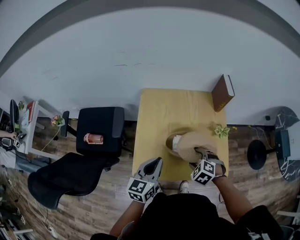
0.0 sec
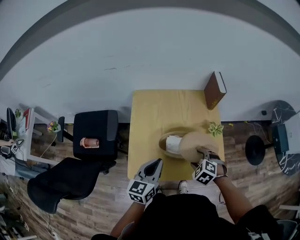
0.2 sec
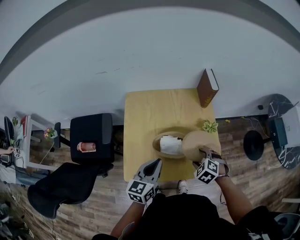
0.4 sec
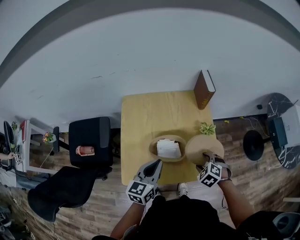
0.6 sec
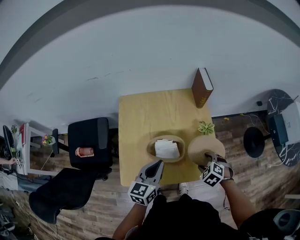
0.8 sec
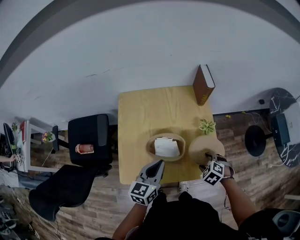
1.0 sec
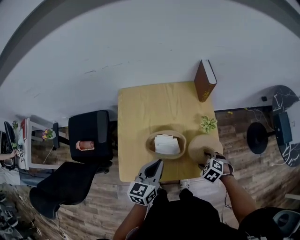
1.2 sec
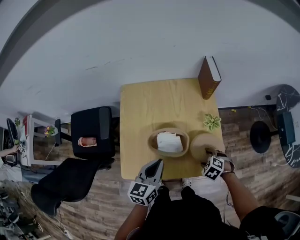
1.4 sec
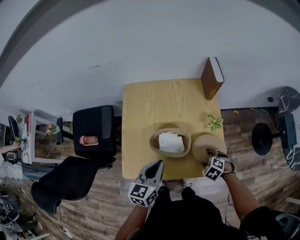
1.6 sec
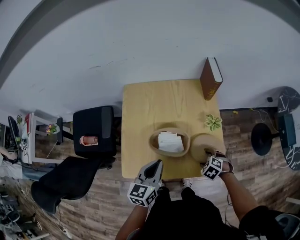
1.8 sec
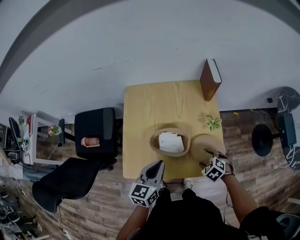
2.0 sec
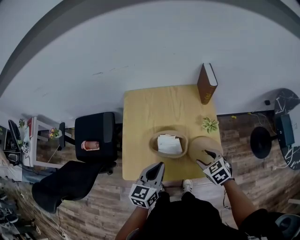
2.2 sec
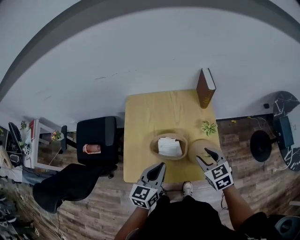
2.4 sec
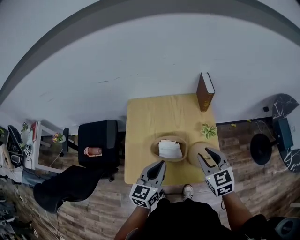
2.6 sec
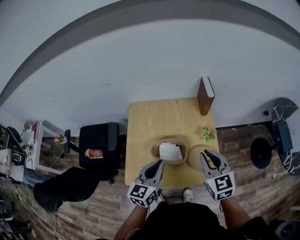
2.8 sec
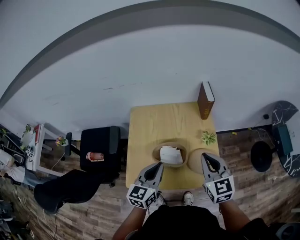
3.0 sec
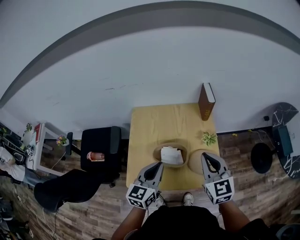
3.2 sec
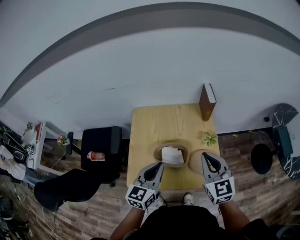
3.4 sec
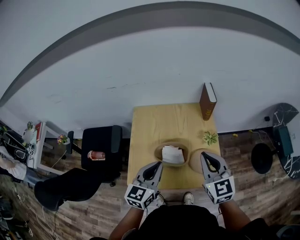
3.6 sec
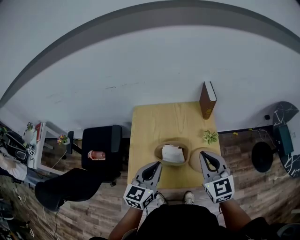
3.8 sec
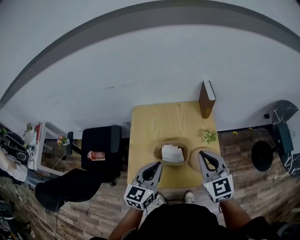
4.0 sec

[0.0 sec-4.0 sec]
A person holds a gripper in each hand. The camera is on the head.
0.0 sec to 1.4 sec: The left gripper moves roughly 10 cm, while the right gripper changes place by approximately 20 cm.
1.4 sec to 2.6 sec: The left gripper travels upward by approximately 5 cm. Meanwhile the right gripper shifts roughly 25 cm upward, points its fingers about 50 degrees further upward, and closes up.
2.6 sec to 4.0 sec: The left gripper ends up approximately 5 cm from where it was; the right gripper heads upward, covering some 10 cm, and closes its fingers.

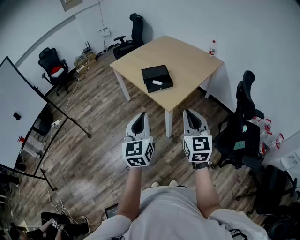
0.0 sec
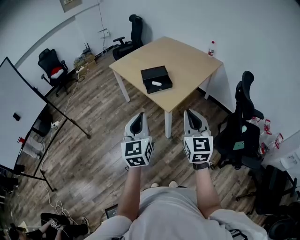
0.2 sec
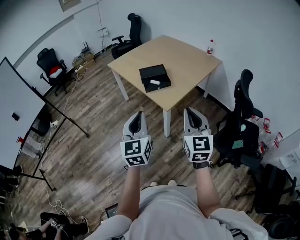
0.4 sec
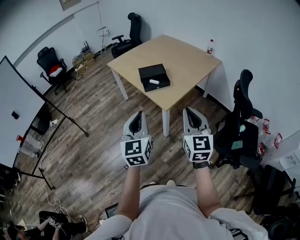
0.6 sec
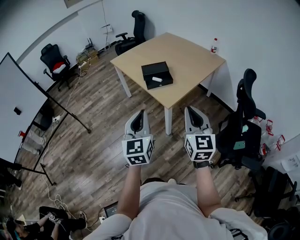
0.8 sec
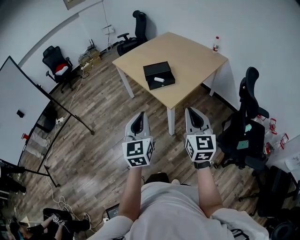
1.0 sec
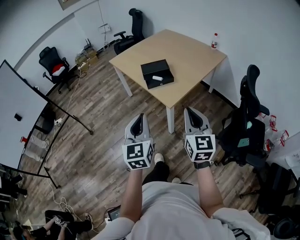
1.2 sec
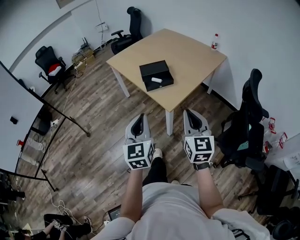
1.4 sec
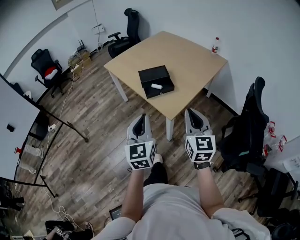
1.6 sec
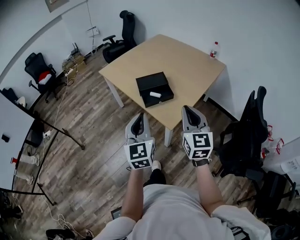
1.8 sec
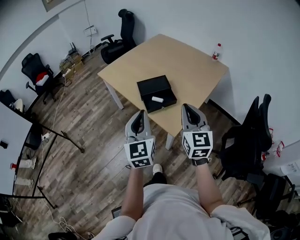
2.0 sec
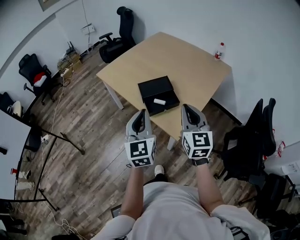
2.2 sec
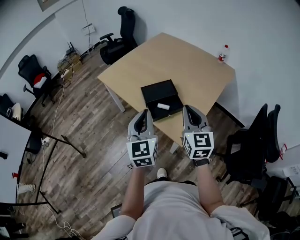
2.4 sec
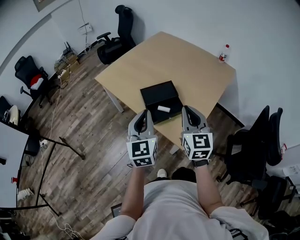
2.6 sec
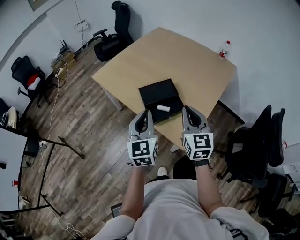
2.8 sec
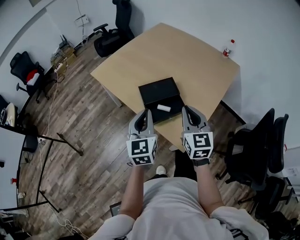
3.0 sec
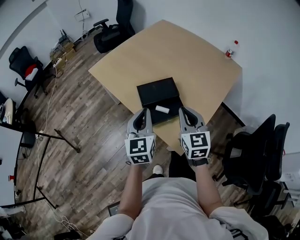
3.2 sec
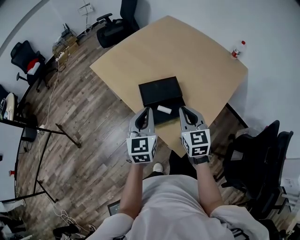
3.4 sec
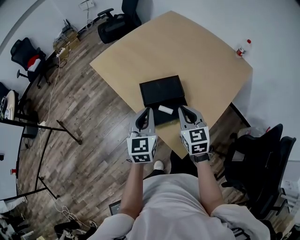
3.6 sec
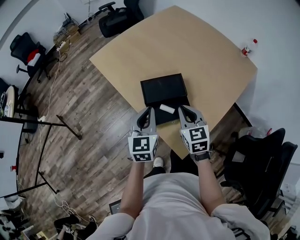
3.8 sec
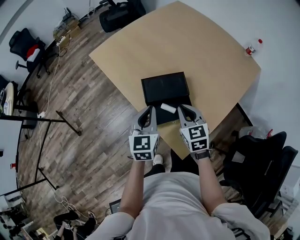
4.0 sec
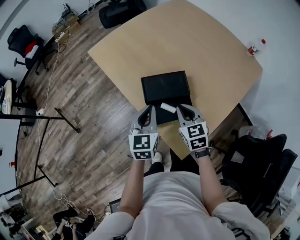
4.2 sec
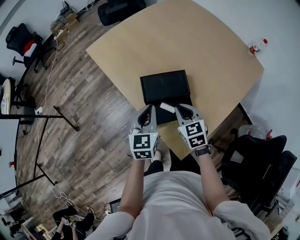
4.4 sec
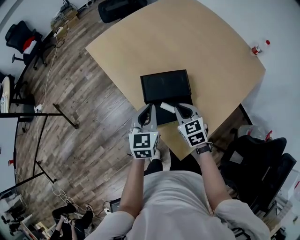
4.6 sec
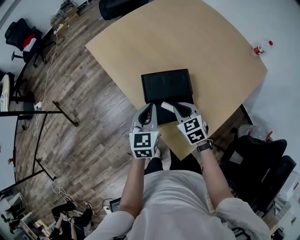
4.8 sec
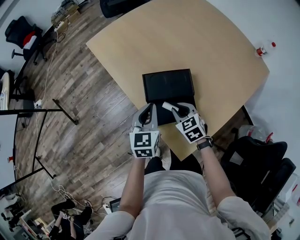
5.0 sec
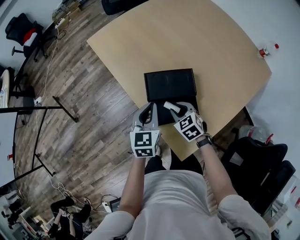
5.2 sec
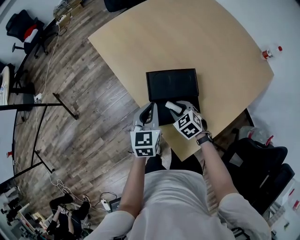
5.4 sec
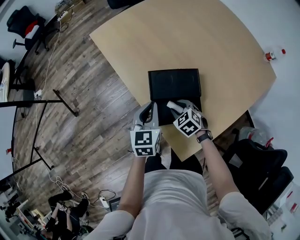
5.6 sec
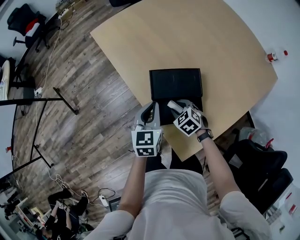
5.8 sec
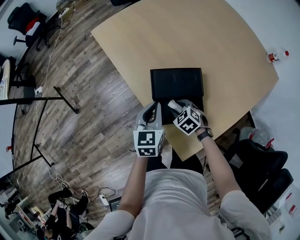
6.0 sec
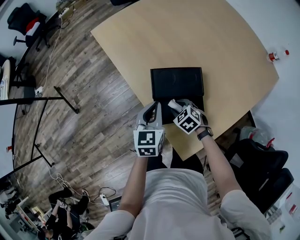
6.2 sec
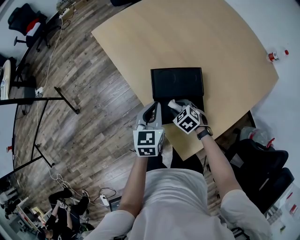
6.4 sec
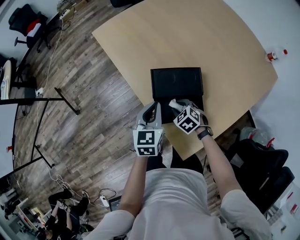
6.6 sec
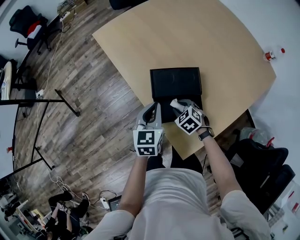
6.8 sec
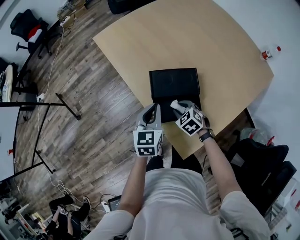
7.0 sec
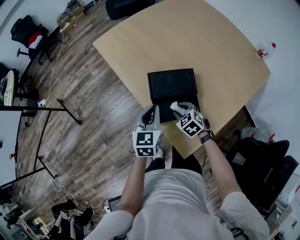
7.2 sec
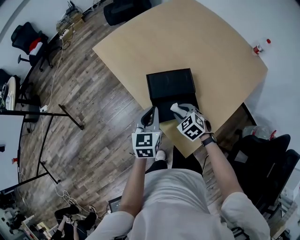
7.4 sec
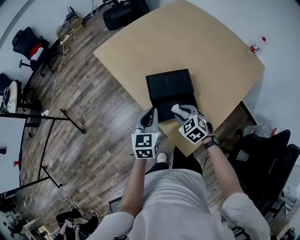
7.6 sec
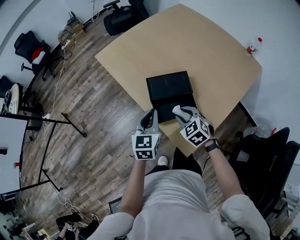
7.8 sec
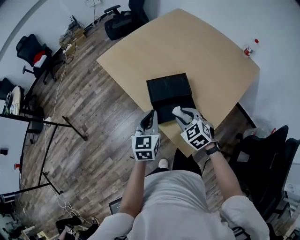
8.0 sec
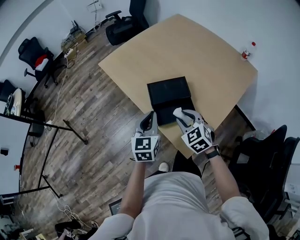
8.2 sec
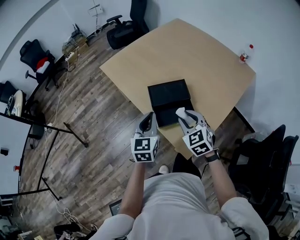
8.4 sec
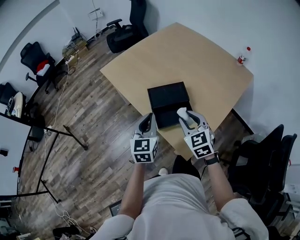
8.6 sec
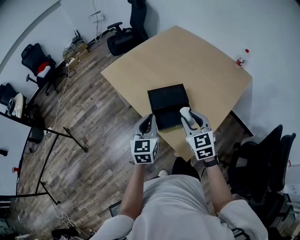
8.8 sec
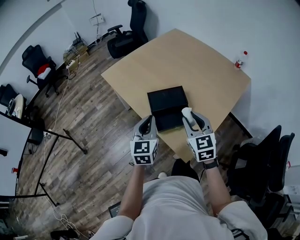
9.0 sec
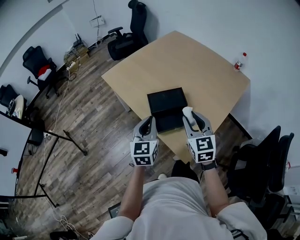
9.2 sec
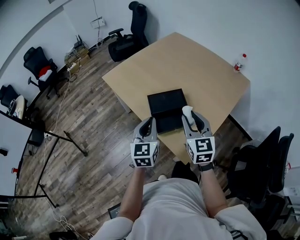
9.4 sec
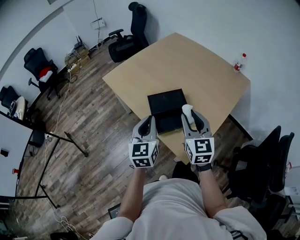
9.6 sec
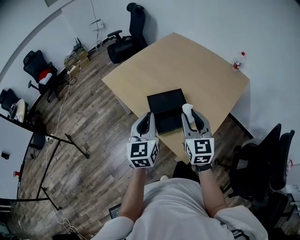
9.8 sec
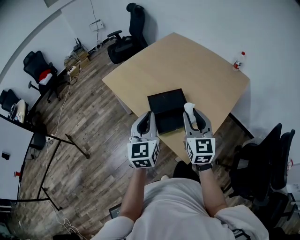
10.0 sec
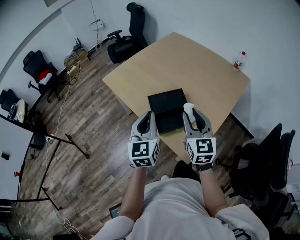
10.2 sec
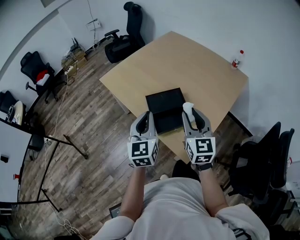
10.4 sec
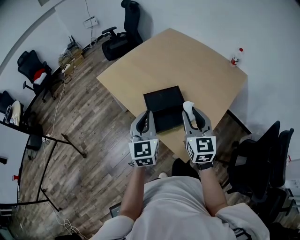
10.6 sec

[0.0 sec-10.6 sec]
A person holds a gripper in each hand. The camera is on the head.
0.0 sec to 1.6 sec: The two grippers go about 10 cm forward.
1.6 sec to 3.0 sec: Both grippers travel together forward, roughly 30 cm.
3.0 sec to 4.6 sec: Both grippers travel together downward and forward, some 20 cm. The right gripper changes its angle by about 40 degrees.
4.6 sec to 6.0 sec: The right gripper moves downward, approximately 15 cm, changes its angle by approximately 30 degrees, and opens; the left gripper ends up some 5 cm from where it was.
6.0 sec to 7.6 sec: The left gripper is displaced upward and backward by about 5 cm. The right gripper moves upward and backward, approximately 10 cm.
7.6 sec to 9.0 sec: The right gripper travels upward by some 20 cm, and turns by roughly 40 degrees; the left gripper goes roughly 10 cm upward.
9.0 sec to 10.6 sec: The left gripper shifts by about 5 cm.

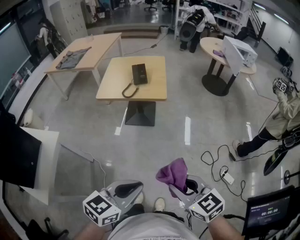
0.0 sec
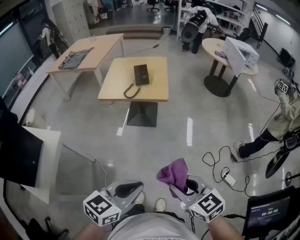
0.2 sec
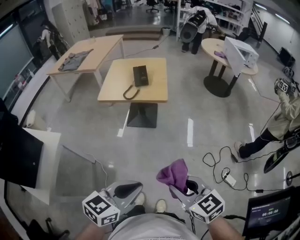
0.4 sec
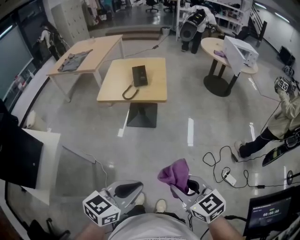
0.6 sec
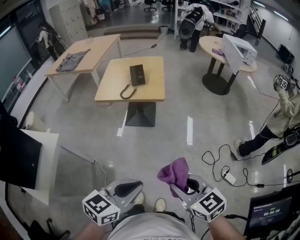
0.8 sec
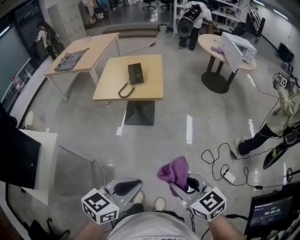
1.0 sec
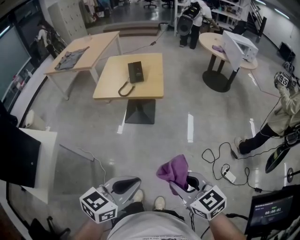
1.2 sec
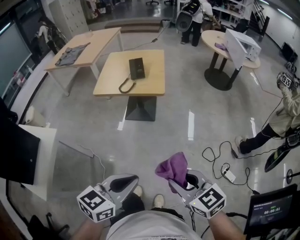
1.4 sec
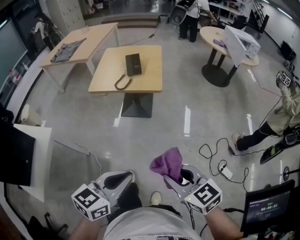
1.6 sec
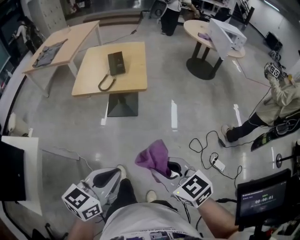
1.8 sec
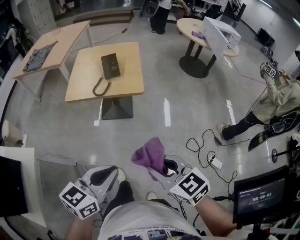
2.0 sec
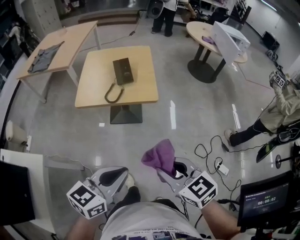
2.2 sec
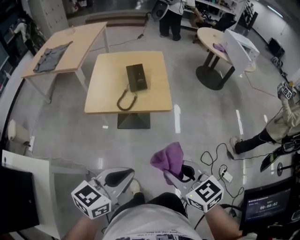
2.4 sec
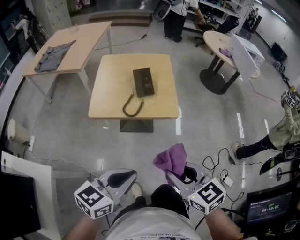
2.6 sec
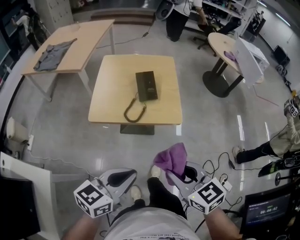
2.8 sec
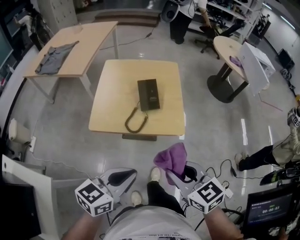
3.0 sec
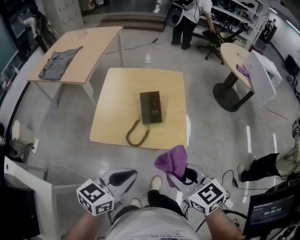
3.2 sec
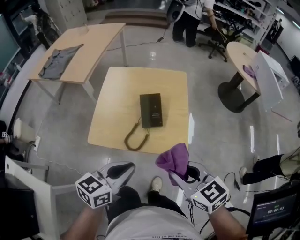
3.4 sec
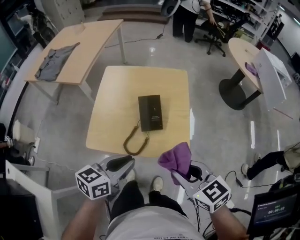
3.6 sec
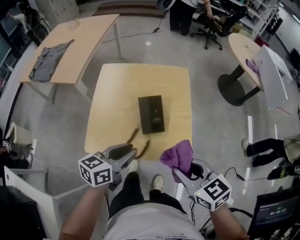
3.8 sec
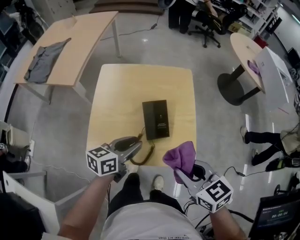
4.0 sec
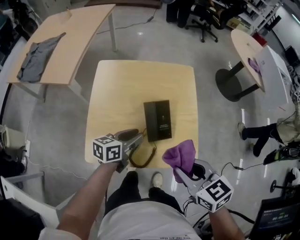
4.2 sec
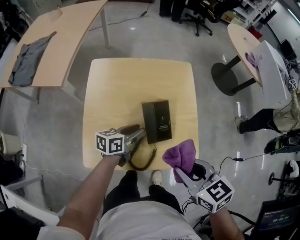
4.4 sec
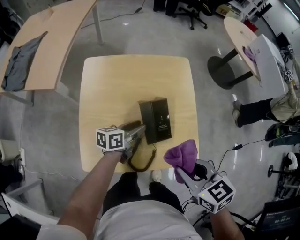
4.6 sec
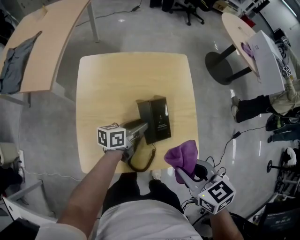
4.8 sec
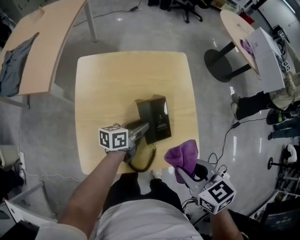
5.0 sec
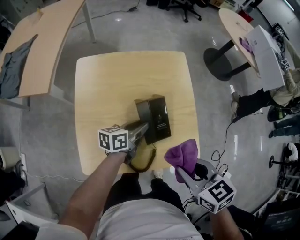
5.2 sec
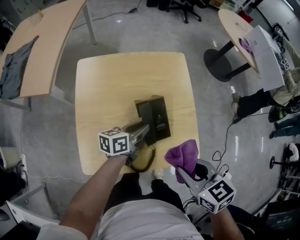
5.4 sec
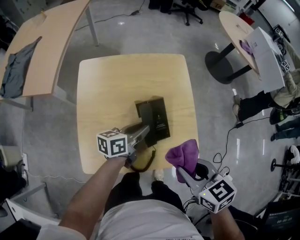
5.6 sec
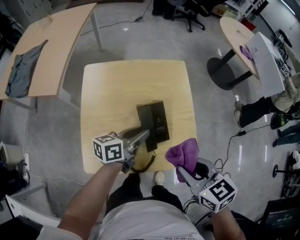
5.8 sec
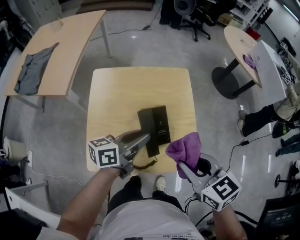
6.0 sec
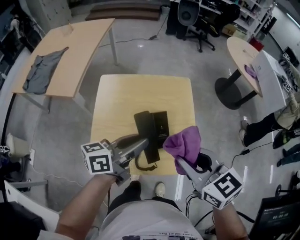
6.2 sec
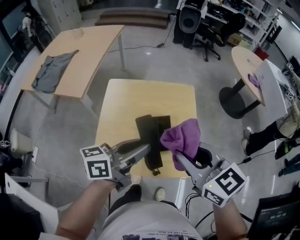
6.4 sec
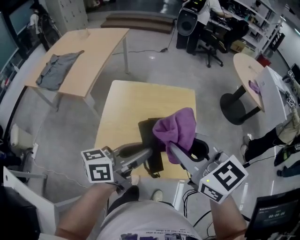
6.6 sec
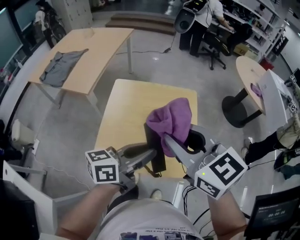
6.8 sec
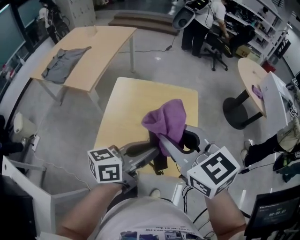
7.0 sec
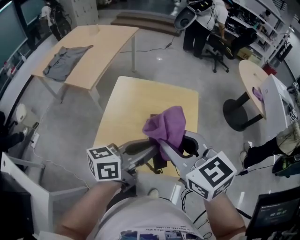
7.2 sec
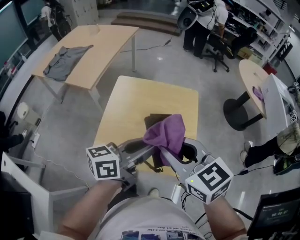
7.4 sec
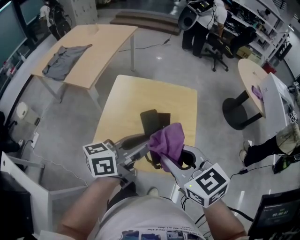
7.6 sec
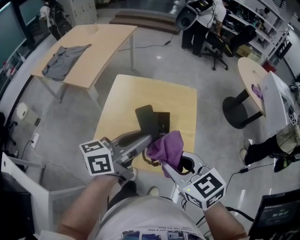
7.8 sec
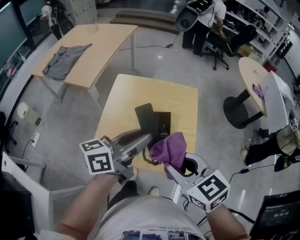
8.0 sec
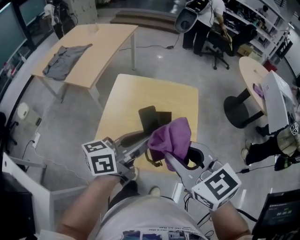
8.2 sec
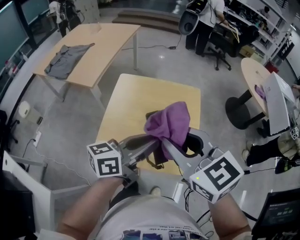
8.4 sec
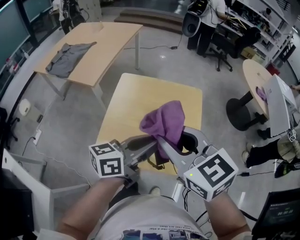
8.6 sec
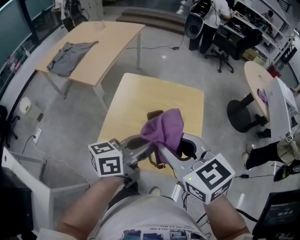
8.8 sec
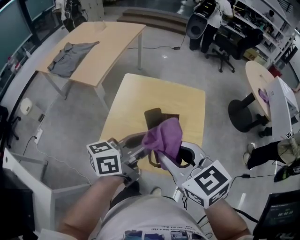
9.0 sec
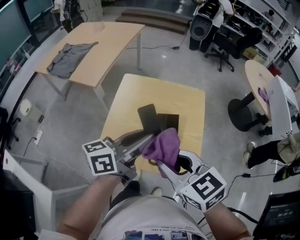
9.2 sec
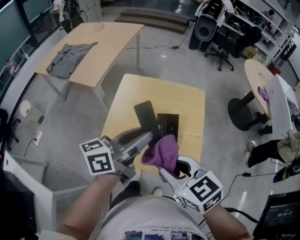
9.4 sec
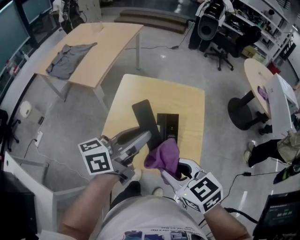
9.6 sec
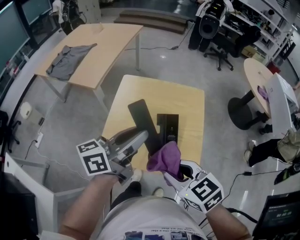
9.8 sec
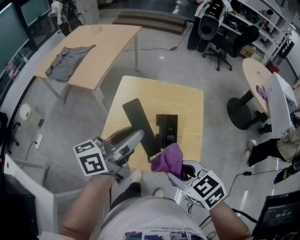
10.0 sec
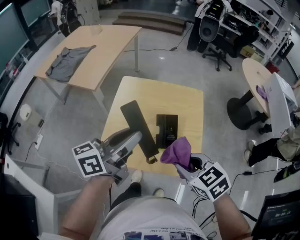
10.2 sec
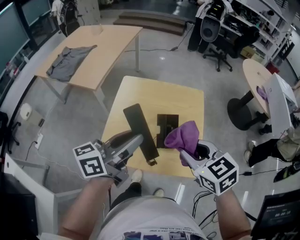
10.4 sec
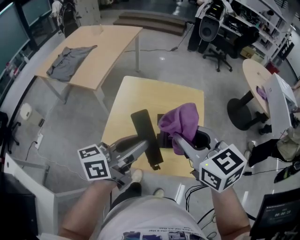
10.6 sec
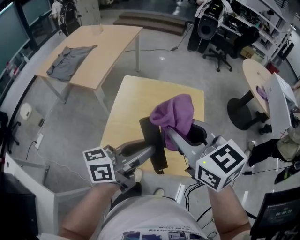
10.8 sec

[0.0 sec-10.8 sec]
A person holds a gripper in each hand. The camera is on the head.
0.0 sec to 1.6 sec: The grippers make only small movements.
1.6 sec to 3.0 sec: Both grippers move forward and to the left, some 35 cm.
3.0 sec to 4.6 sec: The left gripper heads forward and downward, covering some 40 cm, swivels about 30 degrees, and opens its fingers; the right gripper shifts about 20 cm forward.
4.6 sec to 6.2 sec: The left gripper is displaced upward by approximately 20 cm. Meanwhile the right gripper is displaced upward by roughly 10 cm.
6.2 sec to 7.8 sec: The left gripper travels upward by some 5 cm, while the right gripper goes upward and returns, about 10 cm each way.
7.8 sec to 9.2 sec: The right gripper travels upward and back again, some 10 cm each way.
9.2 sec to 10.8 sec: The right gripper travels upward and forward by approximately 10 cm.
